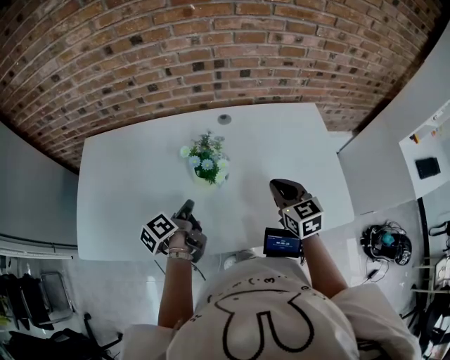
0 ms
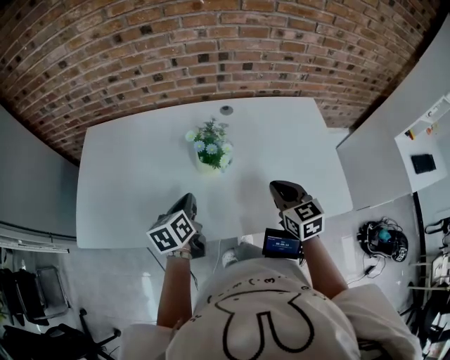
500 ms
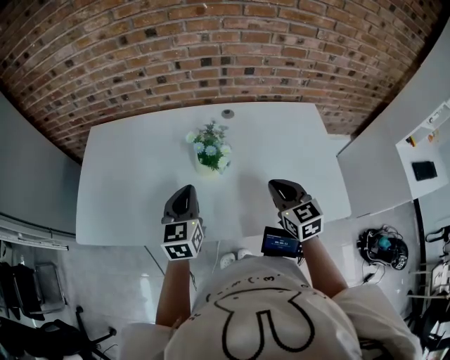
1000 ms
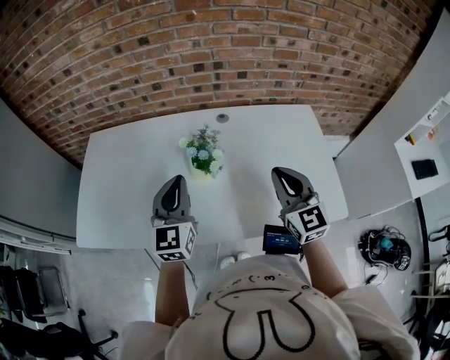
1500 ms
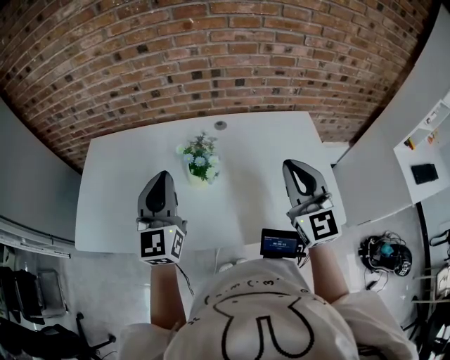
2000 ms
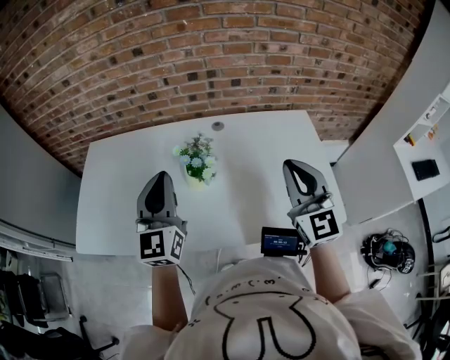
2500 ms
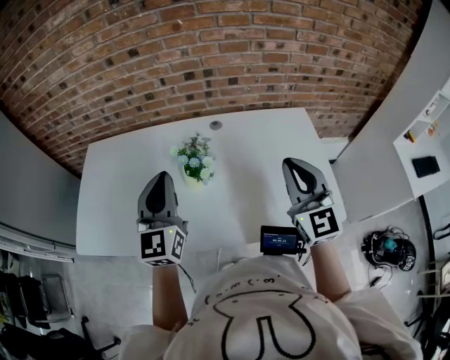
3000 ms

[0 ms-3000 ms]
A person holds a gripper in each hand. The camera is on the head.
0 ms to 1500 ms: The right gripper moves upward, about 10 cm, and turns by roughly 30 degrees.
1500 ms to 3000 ms: The right gripper is displaced upward by some 5 cm.

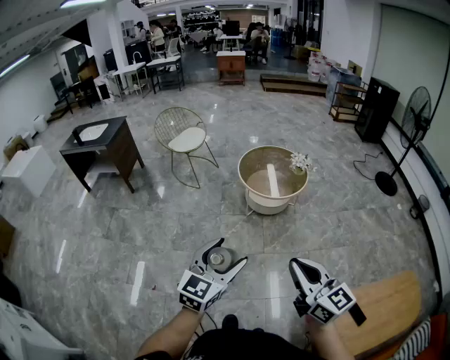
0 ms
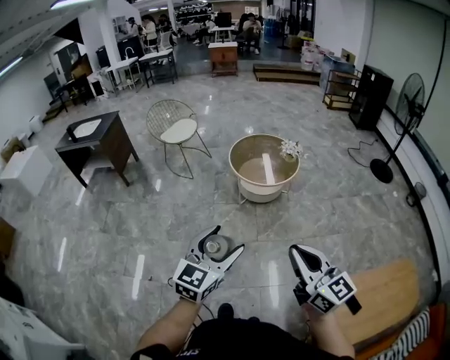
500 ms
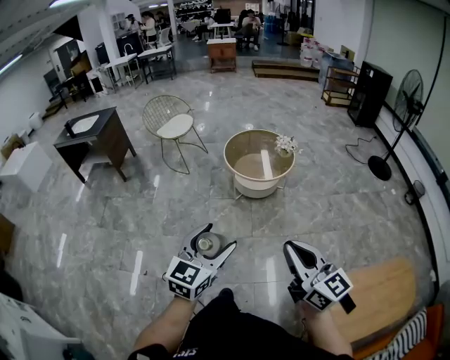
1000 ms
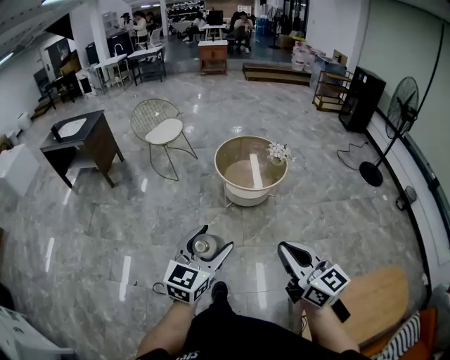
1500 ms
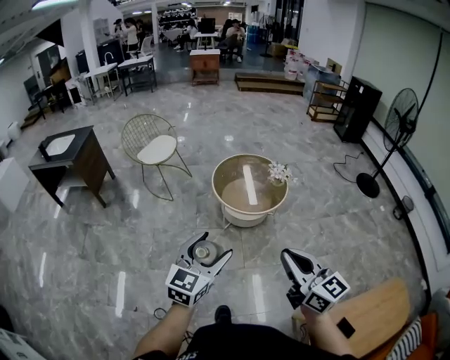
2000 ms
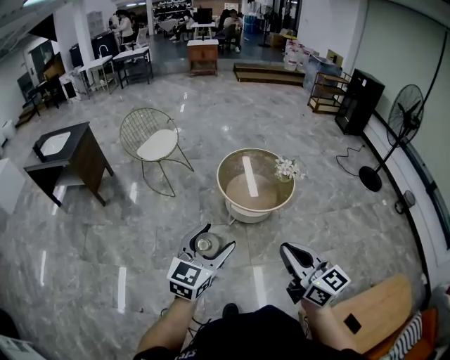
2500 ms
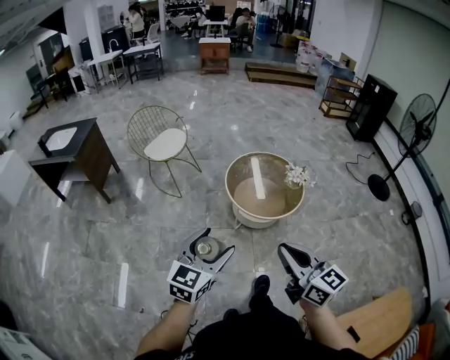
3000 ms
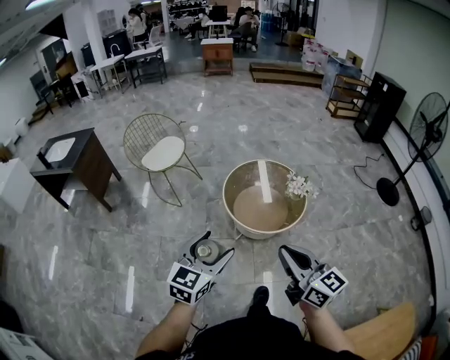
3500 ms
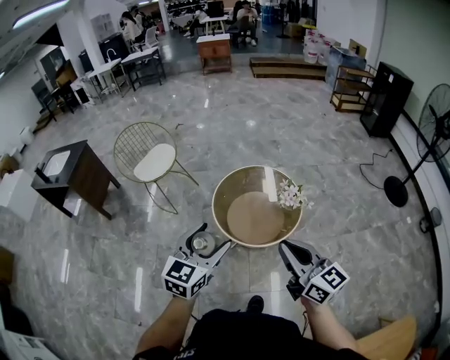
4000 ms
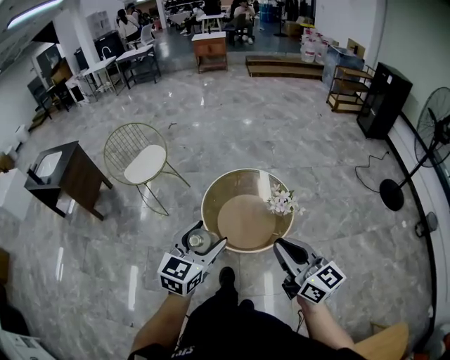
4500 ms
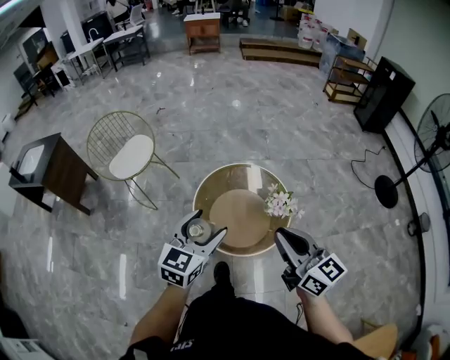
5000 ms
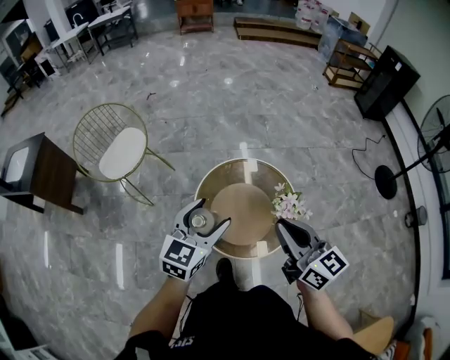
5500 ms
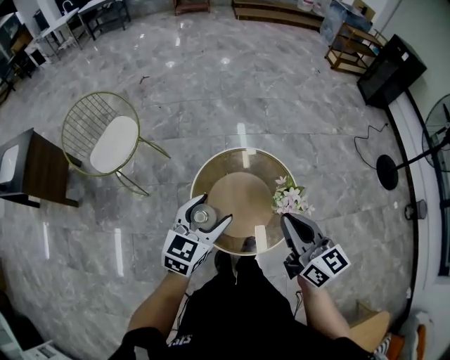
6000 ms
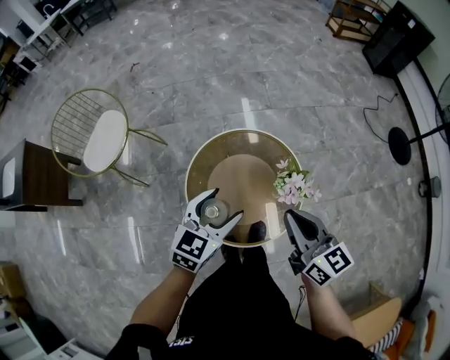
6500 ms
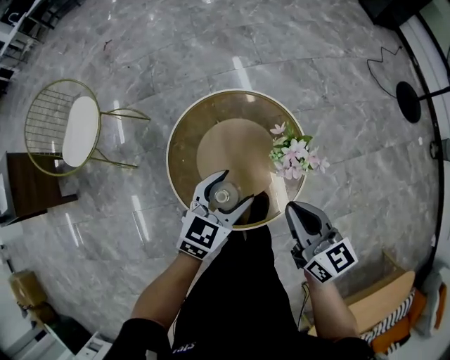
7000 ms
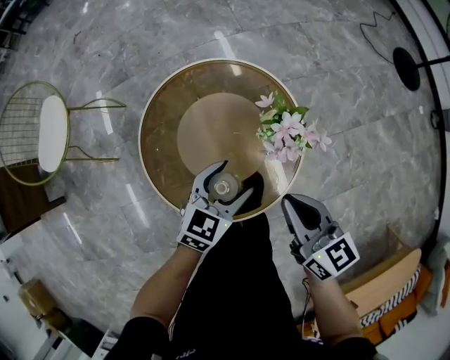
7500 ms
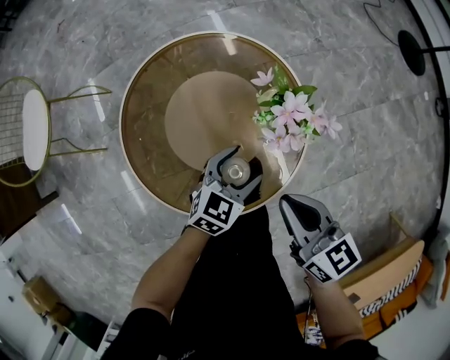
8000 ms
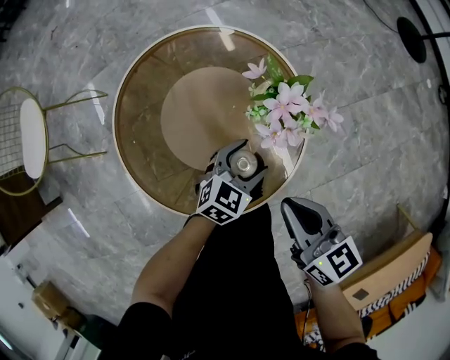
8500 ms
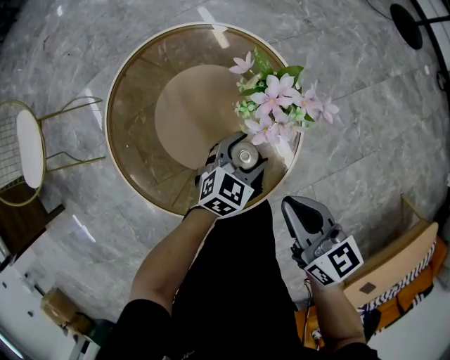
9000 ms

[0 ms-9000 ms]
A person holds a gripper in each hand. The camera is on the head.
0 ms to 2000 ms: Both grippers move forward, approximately 20 cm.
2000 ms to 4500 ms: The two grippers travel together, forward and to the right, approximately 40 cm.
4500 ms to 7000 ms: The grippers both shift forward and downward by some 40 cm. The right gripper changes its angle by about 30 degrees; the left gripper changes its angle by about 30 degrees.
7000 ms to 9000 ms: The right gripper shifts about 20 cm downward. Meanwhile the left gripper moves downward and to the right, approximately 35 cm, and changes its angle by roughly 20 degrees.

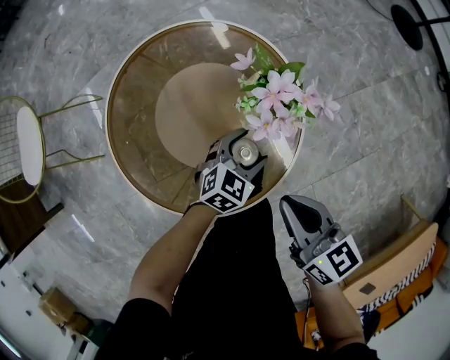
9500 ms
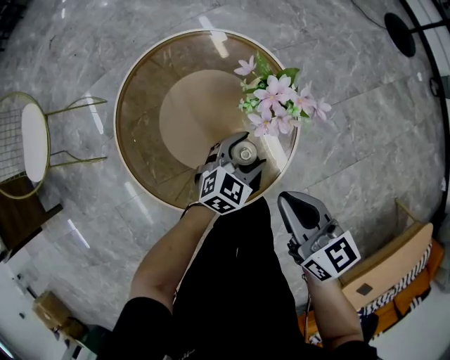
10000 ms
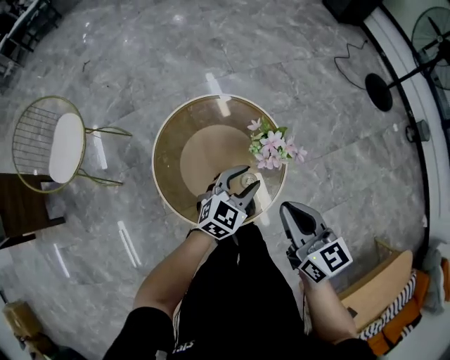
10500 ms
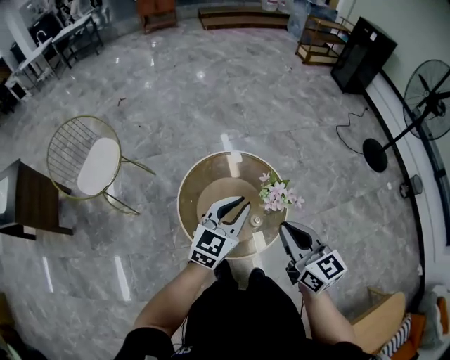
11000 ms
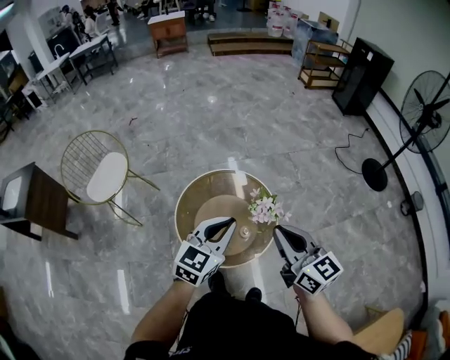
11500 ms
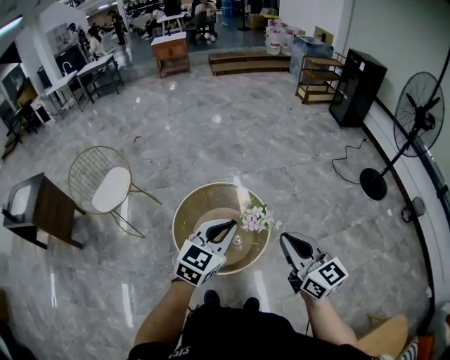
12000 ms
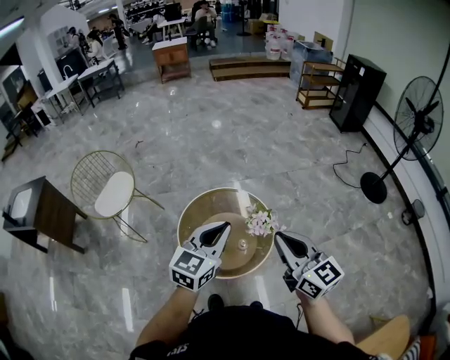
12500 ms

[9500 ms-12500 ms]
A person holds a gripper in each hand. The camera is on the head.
9500 ms to 11000 ms: Both grippers move upward, roughly 40 cm. The left gripper turns by roughly 40 degrees, and closes up. The right gripper rotates about 20 degrees.
11000 ms to 12500 ms: The left gripper moves upward and backward, roughly 20 cm. Meanwhile the right gripper shifts approximately 20 cm upward, to the right and backward.

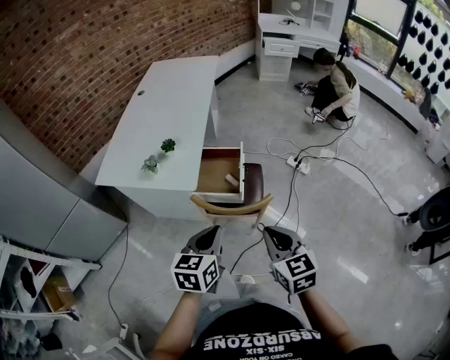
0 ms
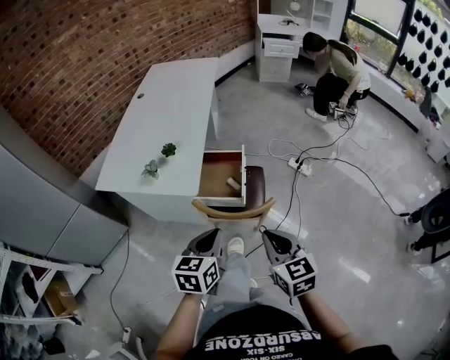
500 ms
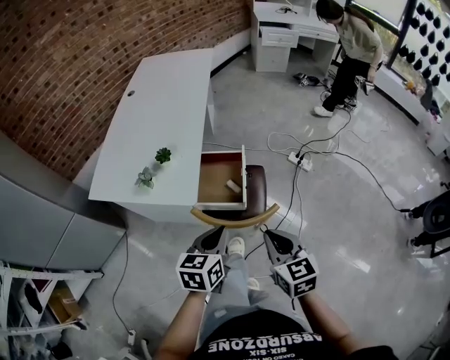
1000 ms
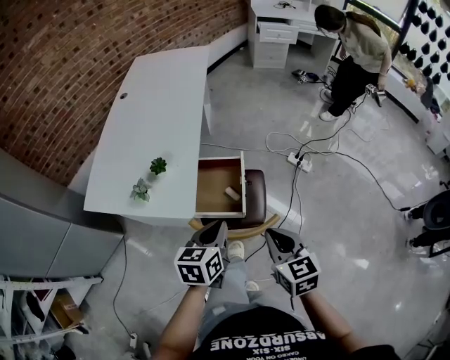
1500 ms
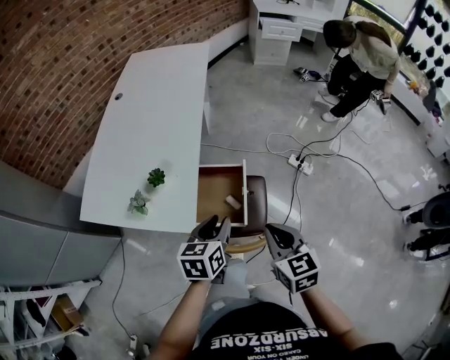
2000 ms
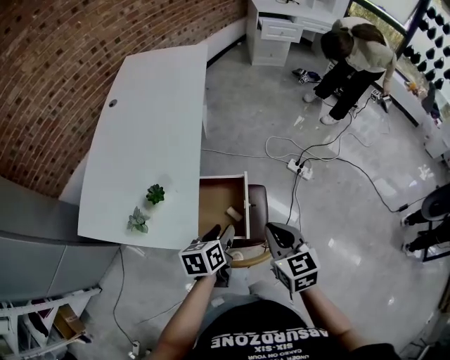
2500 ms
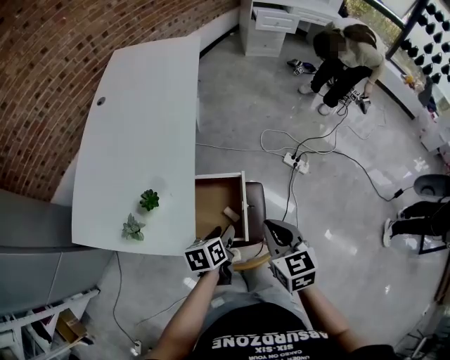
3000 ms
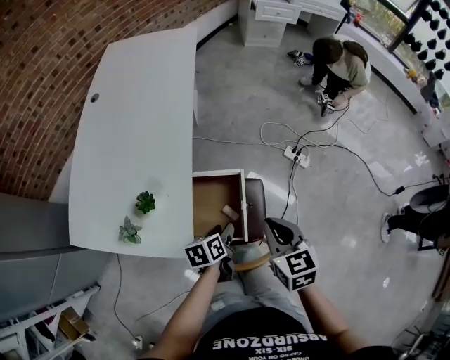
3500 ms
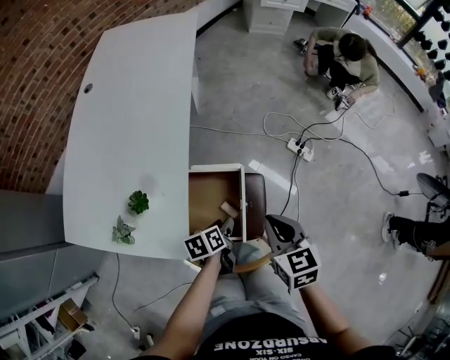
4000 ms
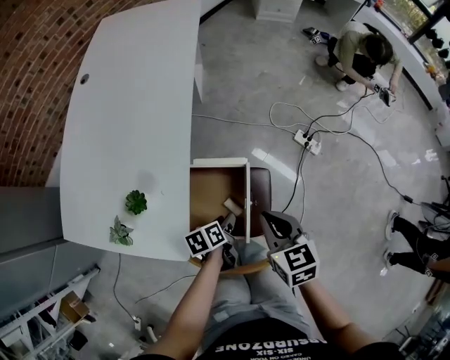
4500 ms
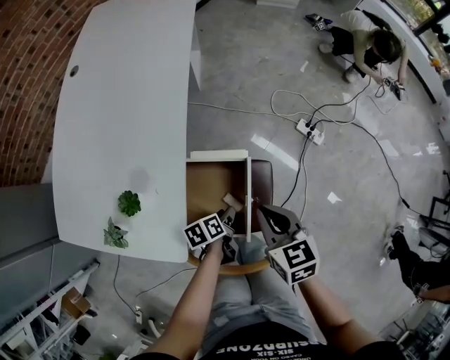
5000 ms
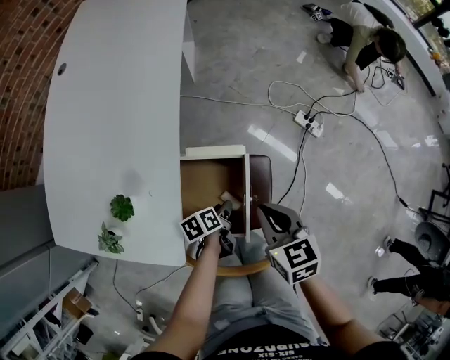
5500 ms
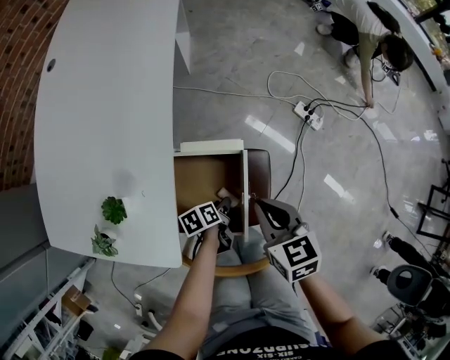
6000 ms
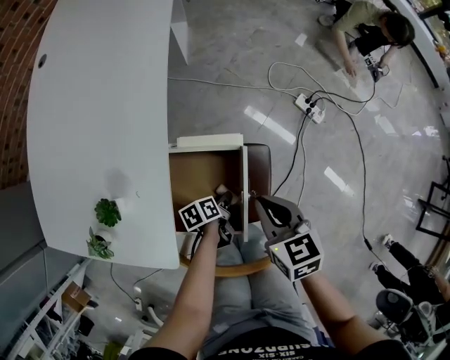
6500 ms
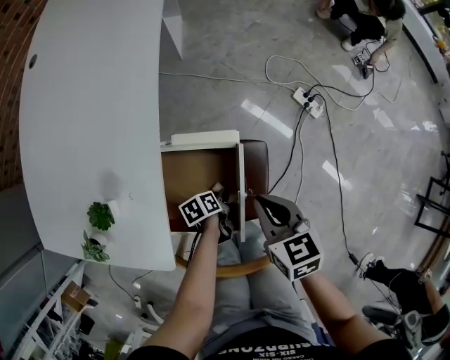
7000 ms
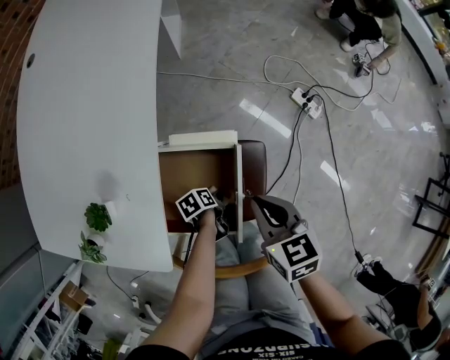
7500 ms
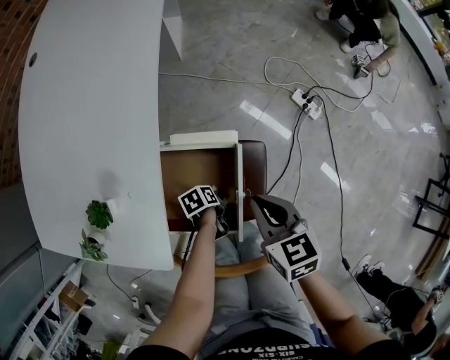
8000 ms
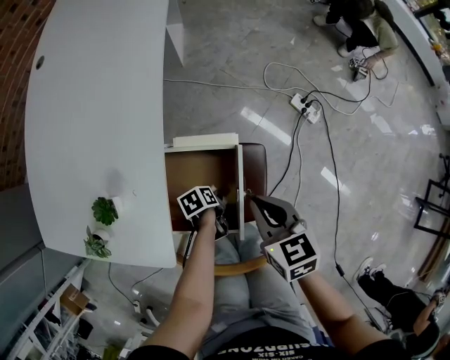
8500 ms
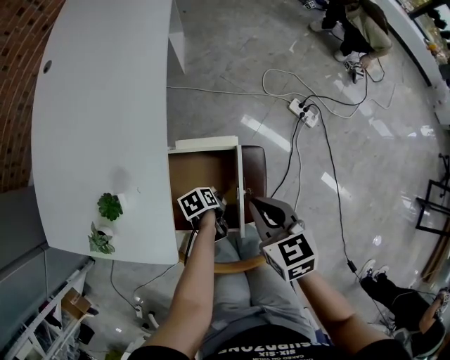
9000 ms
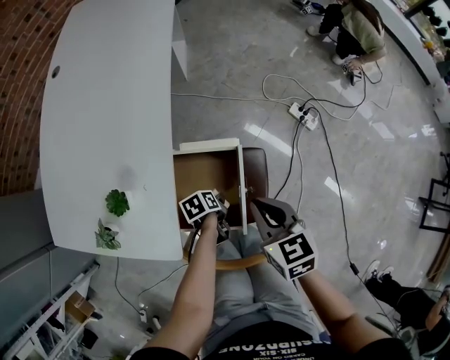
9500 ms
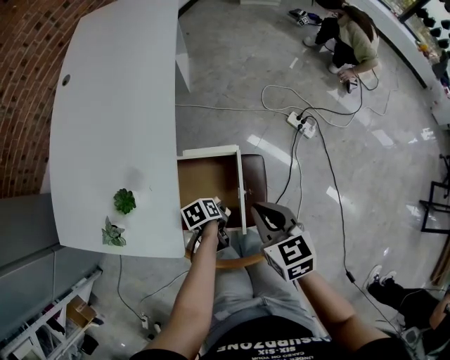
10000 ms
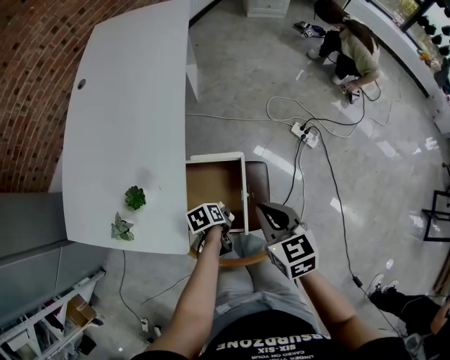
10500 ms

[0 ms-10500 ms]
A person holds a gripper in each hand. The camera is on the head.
0 ms to 2000 ms: The right gripper shifts by about 25 cm.
2000 ms to 4000 ms: The right gripper shifts by about 20 cm.
4000 ms to 6500 ms: The right gripper travels downward by about 15 cm.
8500 ms to 10500 ms: The right gripper heads upward, covering some 10 cm.

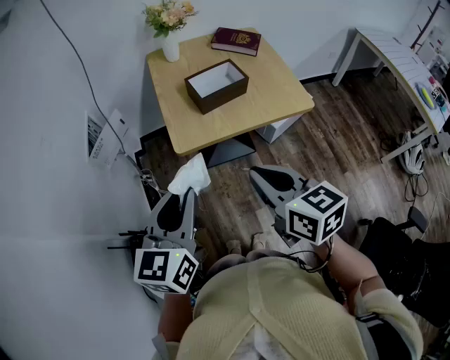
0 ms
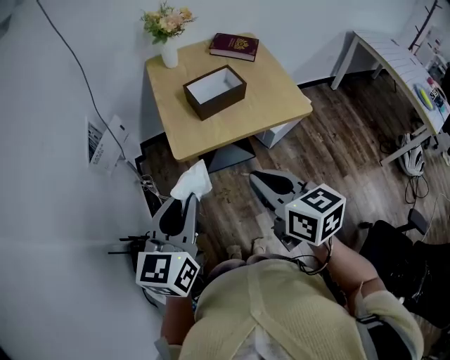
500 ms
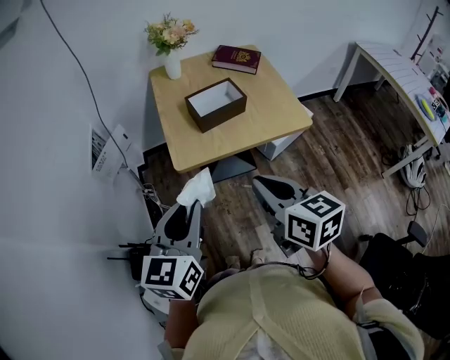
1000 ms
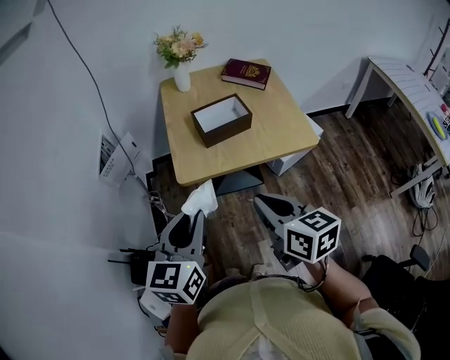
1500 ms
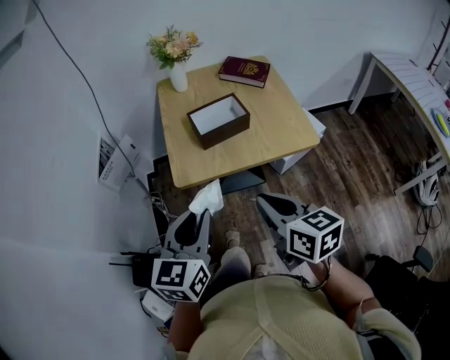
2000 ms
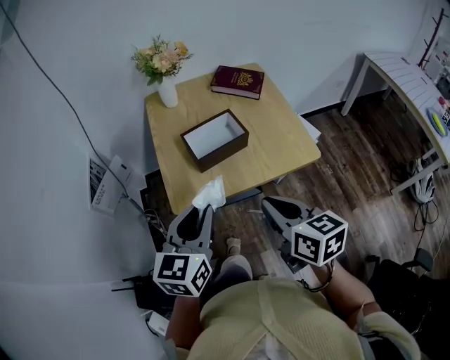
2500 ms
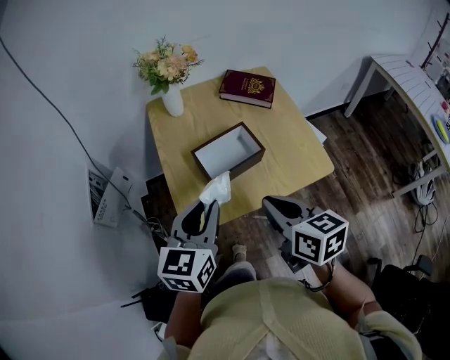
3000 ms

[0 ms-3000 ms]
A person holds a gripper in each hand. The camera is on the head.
0 ms to 1500 ms: The right gripper shifts by roughly 5 cm; the left gripper shifts by about 5 cm.
1500 ms to 3000 ms: Both grippers travel together forward, approximately 20 cm.
